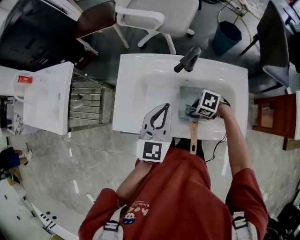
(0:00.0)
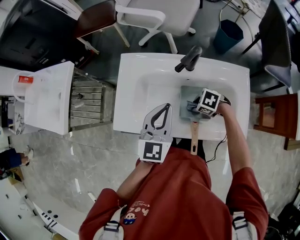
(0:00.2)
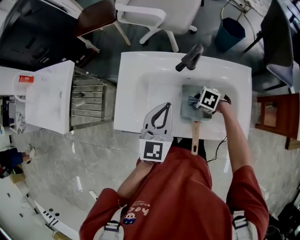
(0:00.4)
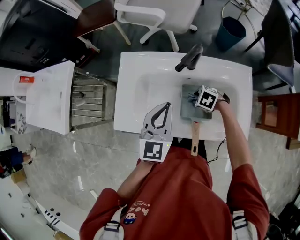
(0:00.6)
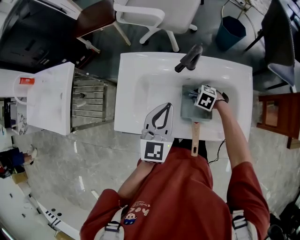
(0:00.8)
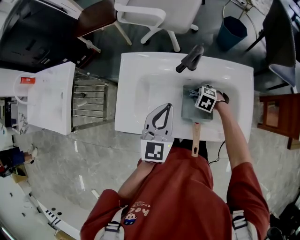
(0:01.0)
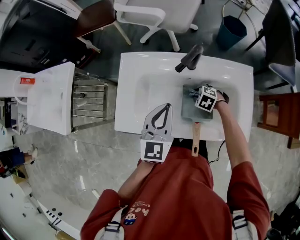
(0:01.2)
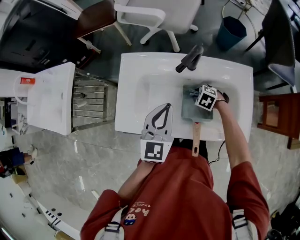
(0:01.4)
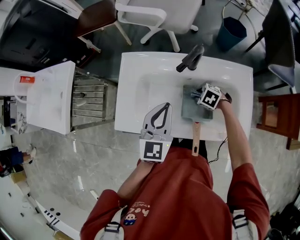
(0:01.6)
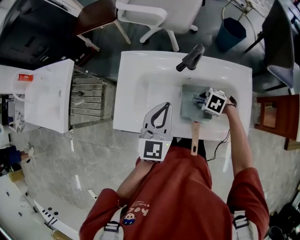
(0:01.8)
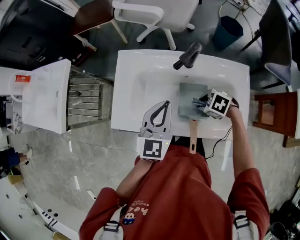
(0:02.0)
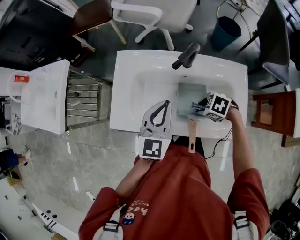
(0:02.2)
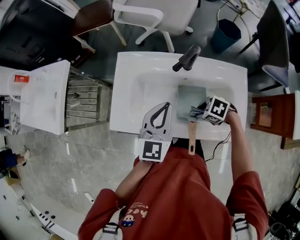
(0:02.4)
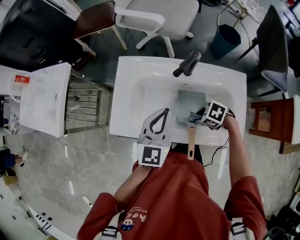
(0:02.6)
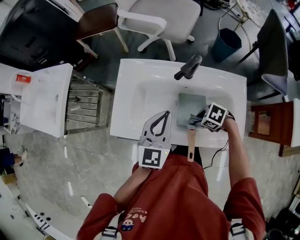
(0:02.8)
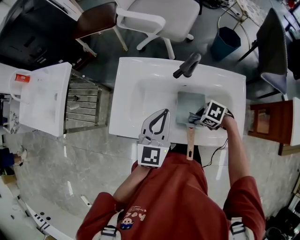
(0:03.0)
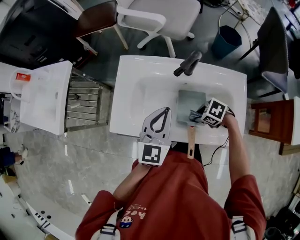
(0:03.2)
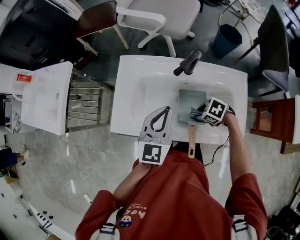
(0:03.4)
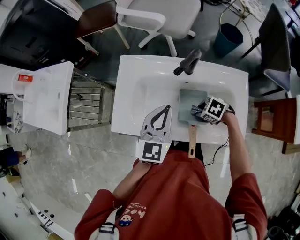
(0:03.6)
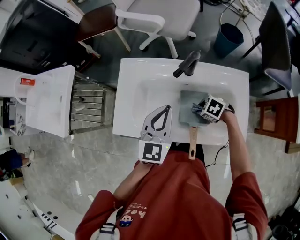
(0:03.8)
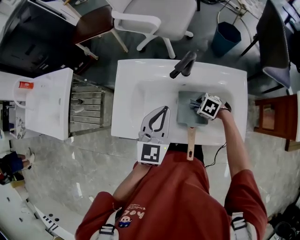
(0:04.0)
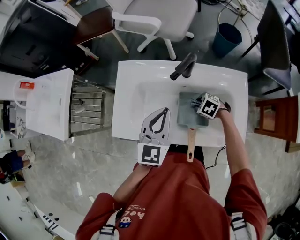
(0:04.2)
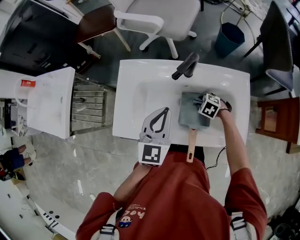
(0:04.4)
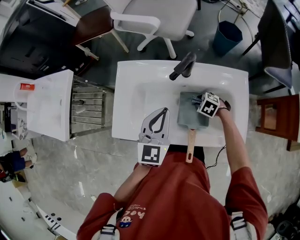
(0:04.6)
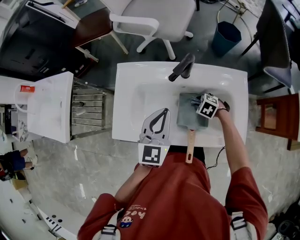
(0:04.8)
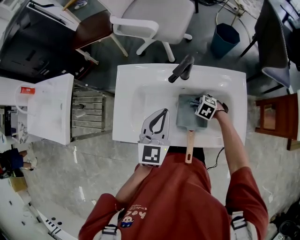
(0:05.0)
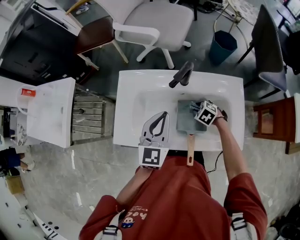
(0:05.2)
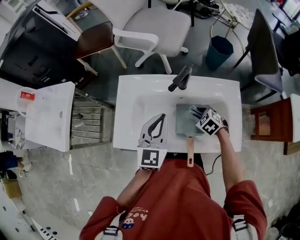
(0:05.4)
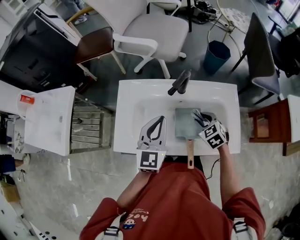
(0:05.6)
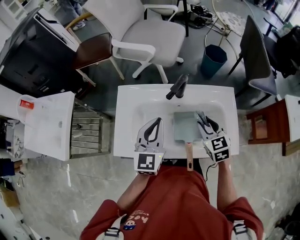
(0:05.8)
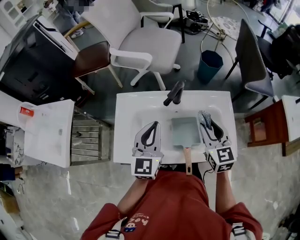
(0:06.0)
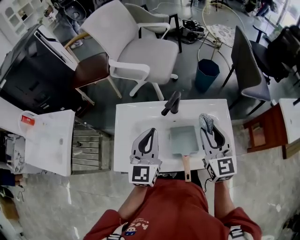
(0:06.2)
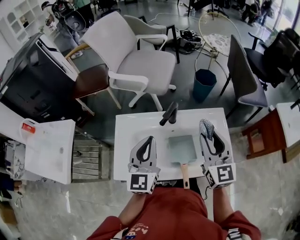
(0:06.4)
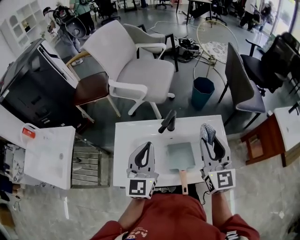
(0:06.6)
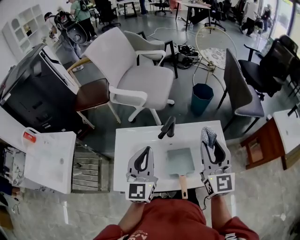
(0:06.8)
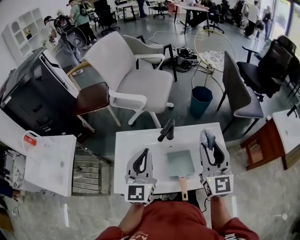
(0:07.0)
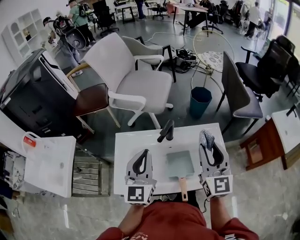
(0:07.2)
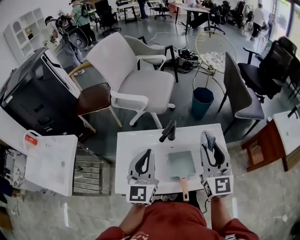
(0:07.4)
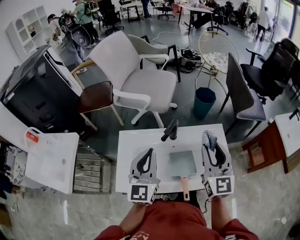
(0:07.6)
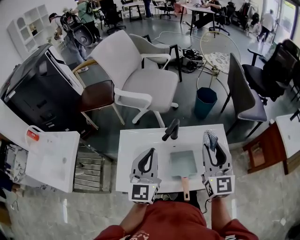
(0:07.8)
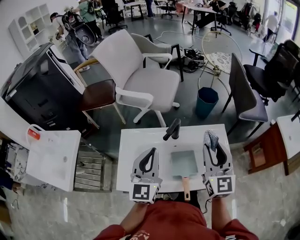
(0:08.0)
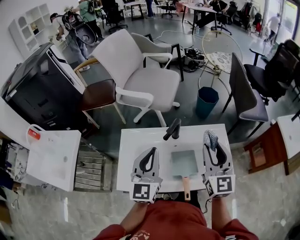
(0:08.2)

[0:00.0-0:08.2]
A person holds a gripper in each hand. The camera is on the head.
0:00.0 to 0:01.6: The right gripper changes place by roughly 10 cm.
0:01.6 to 0:03.2: The right gripper changes place by roughly 10 cm.
0:03.2 to 0:05.0: The right gripper changes place by about 10 cm, and changes its angle by about 20 degrees.
0:05.0 to 0:06.6: The right gripper heads upward, covering about 40 cm, and tilts its fingers roughly 70 degrees upward. Meanwhile the left gripper travels upward by approximately 15 cm.
0:06.6 to 0:08.2: The grippers move only a little.

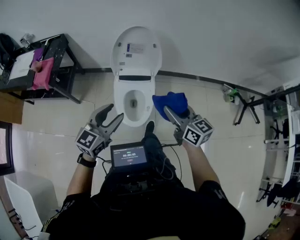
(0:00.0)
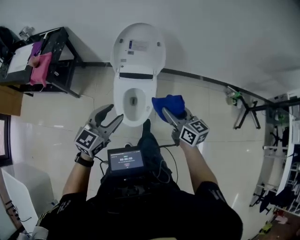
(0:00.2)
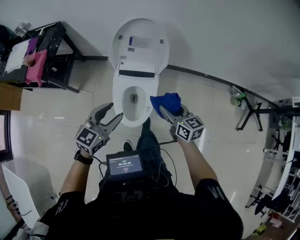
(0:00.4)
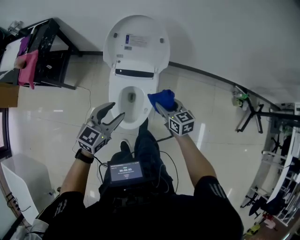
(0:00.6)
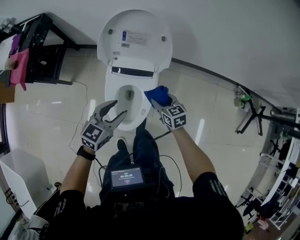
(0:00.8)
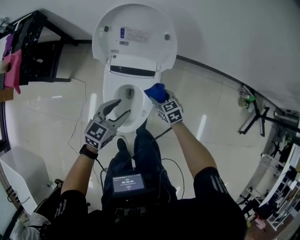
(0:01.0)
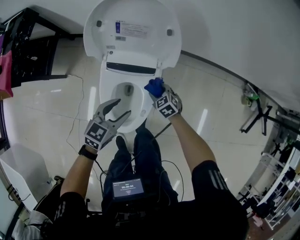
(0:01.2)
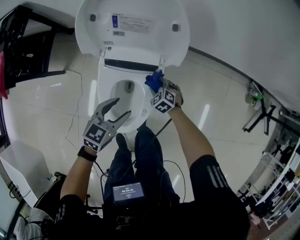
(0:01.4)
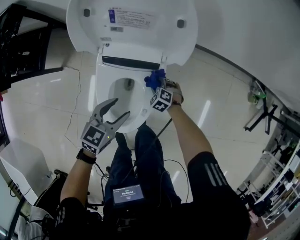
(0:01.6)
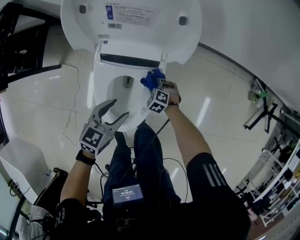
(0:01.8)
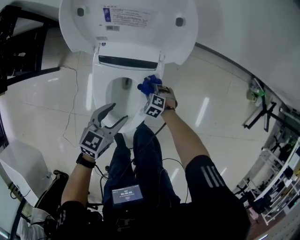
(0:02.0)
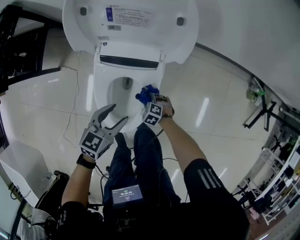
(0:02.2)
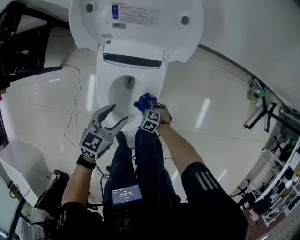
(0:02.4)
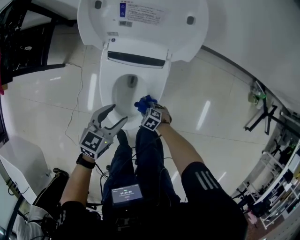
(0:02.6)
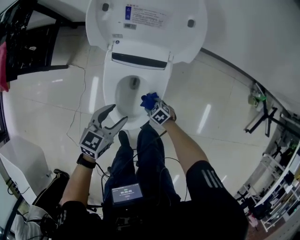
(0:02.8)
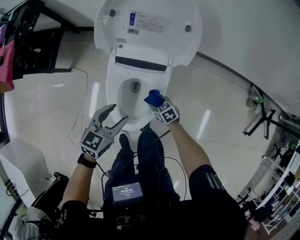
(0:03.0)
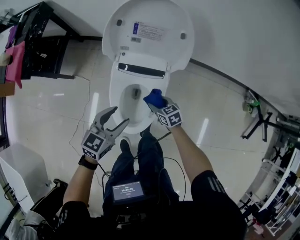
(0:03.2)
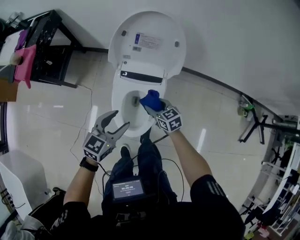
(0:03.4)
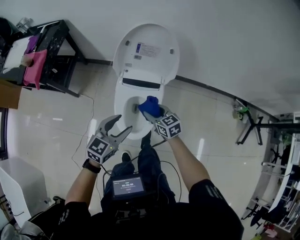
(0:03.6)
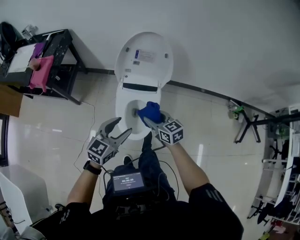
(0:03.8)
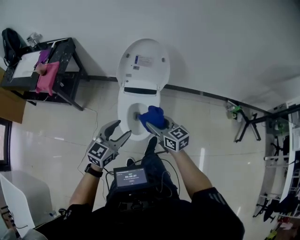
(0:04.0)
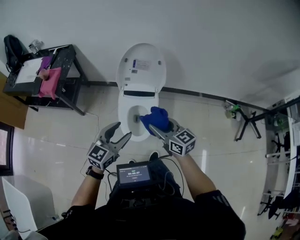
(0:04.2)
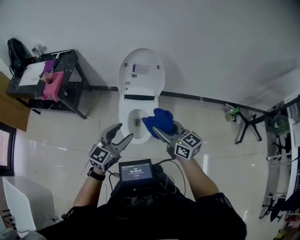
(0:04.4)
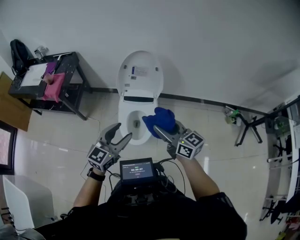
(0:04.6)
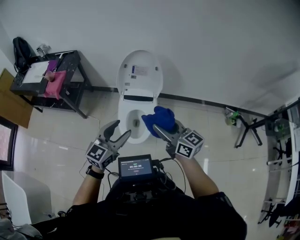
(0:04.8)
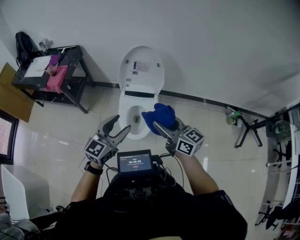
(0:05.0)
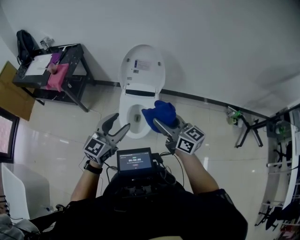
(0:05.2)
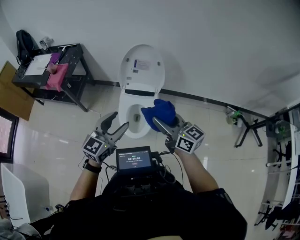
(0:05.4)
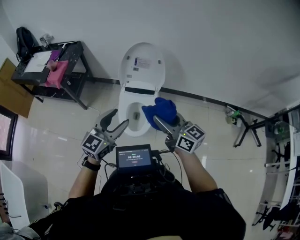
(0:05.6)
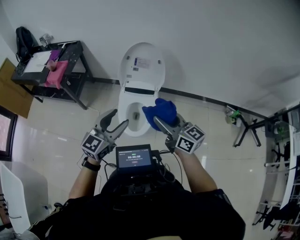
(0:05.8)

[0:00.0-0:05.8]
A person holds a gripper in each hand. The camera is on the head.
0:00.0 to 0:01.4: The grippers both shift downward and forward by some 60 cm. The left gripper swivels roughly 30 degrees. The right gripper points its fingers some 50 degrees further downward.
0:01.4 to 0:02.8: The right gripper moves about 20 cm, and changes its angle by approximately 30 degrees; the left gripper shifts by approximately 5 cm.
0:02.8 to 0:04.4: The right gripper heads upward, covering about 70 cm, and tilts its fingers about 50 degrees upward. The left gripper is displaced upward by roughly 35 cm, and rotates approximately 30 degrees.
0:04.4 to 0:05.8: The right gripper changes place by some 5 cm. Meanwhile the left gripper is displaced upward by some 5 cm.

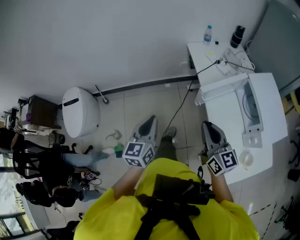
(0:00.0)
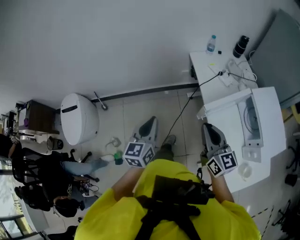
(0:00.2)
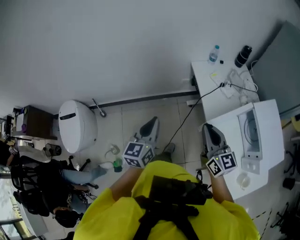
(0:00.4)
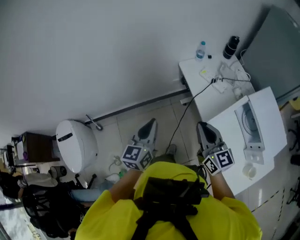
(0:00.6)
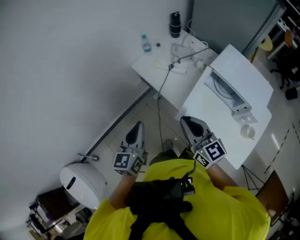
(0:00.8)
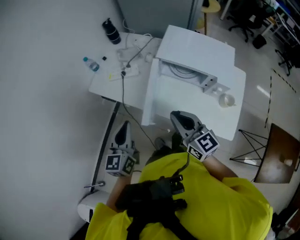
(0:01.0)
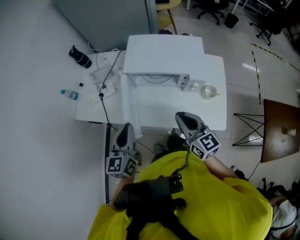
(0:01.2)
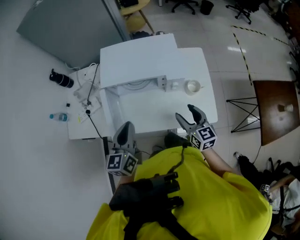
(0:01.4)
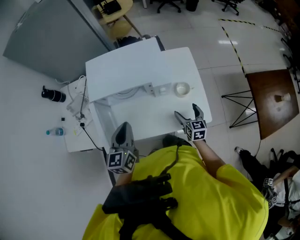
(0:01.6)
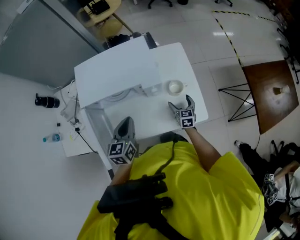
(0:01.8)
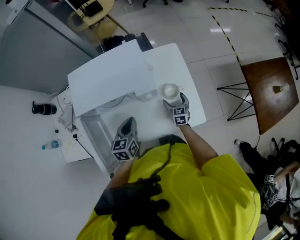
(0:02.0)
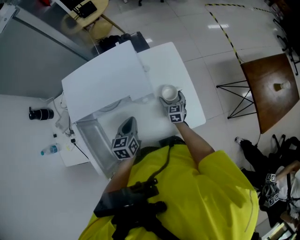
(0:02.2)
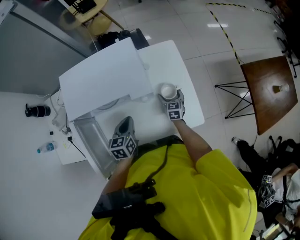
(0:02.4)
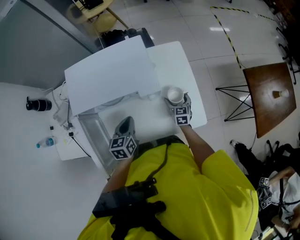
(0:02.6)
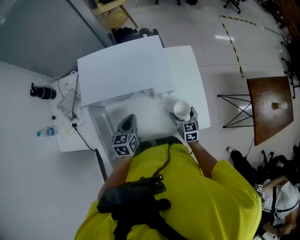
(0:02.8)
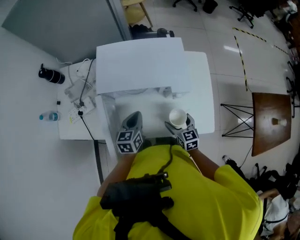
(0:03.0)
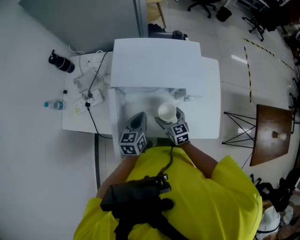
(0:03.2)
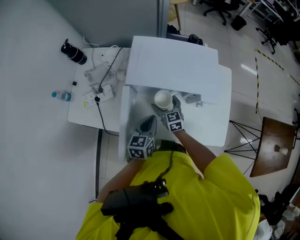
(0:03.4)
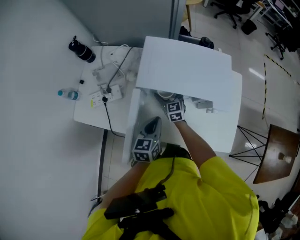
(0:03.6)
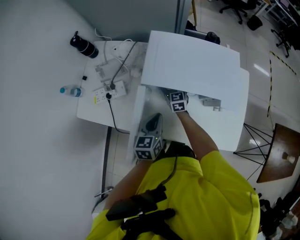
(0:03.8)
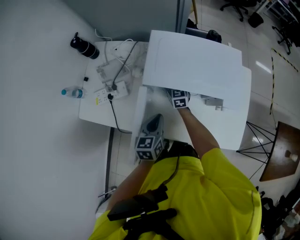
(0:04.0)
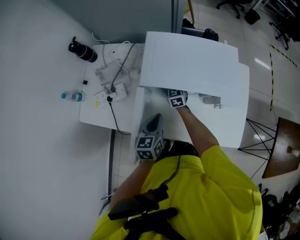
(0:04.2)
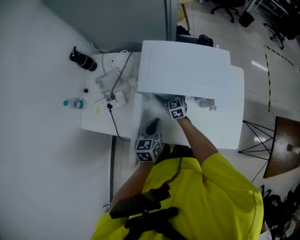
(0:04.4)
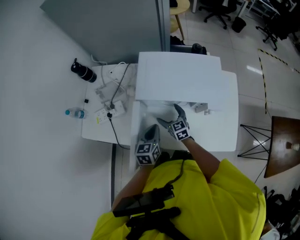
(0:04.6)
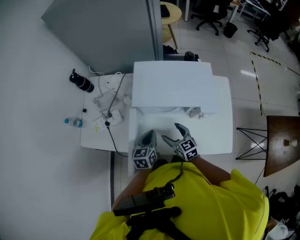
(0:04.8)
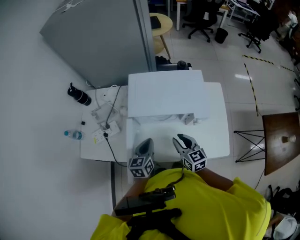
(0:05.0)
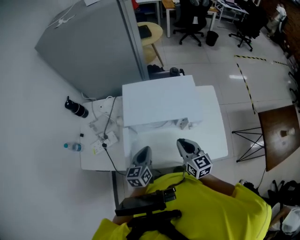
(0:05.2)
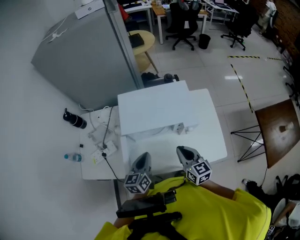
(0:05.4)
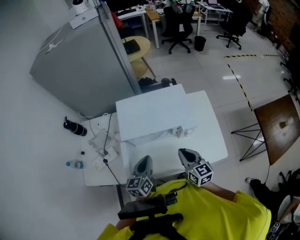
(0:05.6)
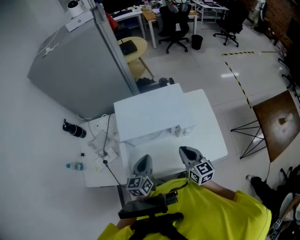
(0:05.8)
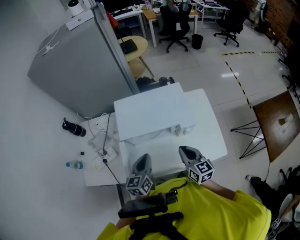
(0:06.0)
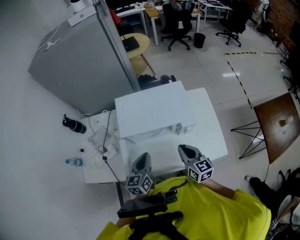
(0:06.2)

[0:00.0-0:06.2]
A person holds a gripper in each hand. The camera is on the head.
0:00.0 to 0:01.6: The left gripper changes place by roughly 40 cm, and rotates some 80 degrees. The right gripper moves about 40 cm, rotates roughly 100 degrees, and opens its fingers.
0:01.6 to 0:03.2: The right gripper heads to the left, covering roughly 25 cm, and changes its angle by some 30 degrees. The left gripper is displaced downward, to the left and forward by some 15 cm.
0:03.2 to 0:04.6: The right gripper travels to the left and forward by roughly 15 cm. The left gripper travels to the left by some 5 cm.
0:04.6 to 0:06.2: The right gripper travels upward, to the right and backward by approximately 30 cm, turns by roughly 30 degrees, and closes up. The left gripper heads upward, covering roughly 10 cm.

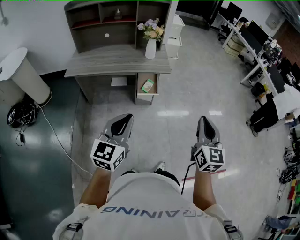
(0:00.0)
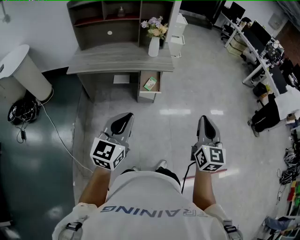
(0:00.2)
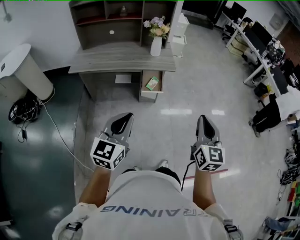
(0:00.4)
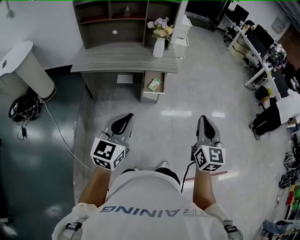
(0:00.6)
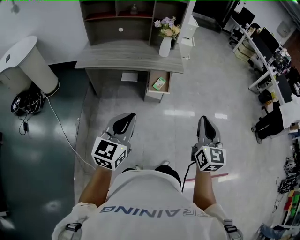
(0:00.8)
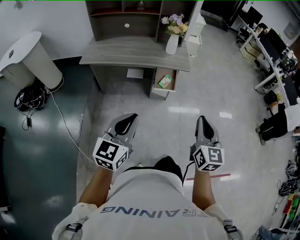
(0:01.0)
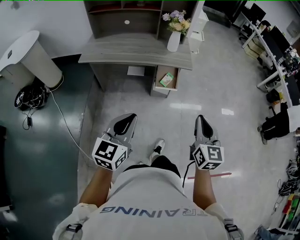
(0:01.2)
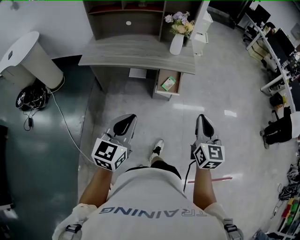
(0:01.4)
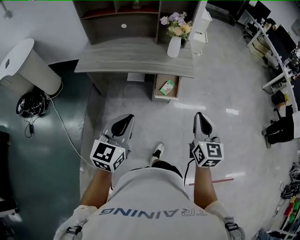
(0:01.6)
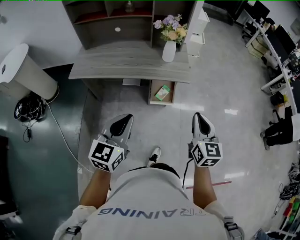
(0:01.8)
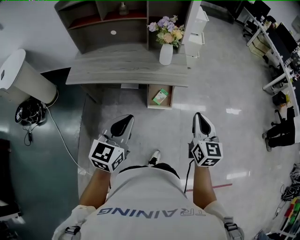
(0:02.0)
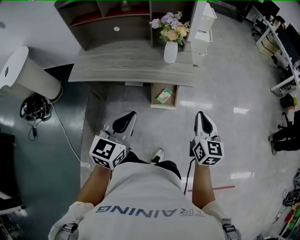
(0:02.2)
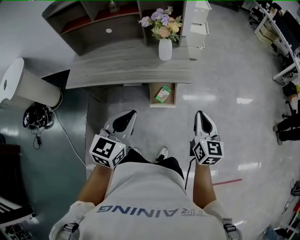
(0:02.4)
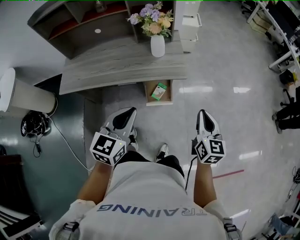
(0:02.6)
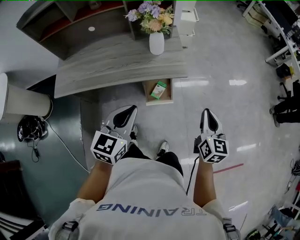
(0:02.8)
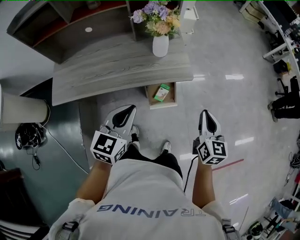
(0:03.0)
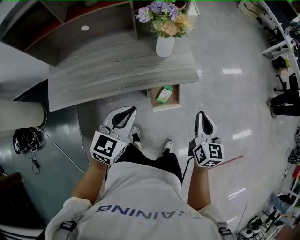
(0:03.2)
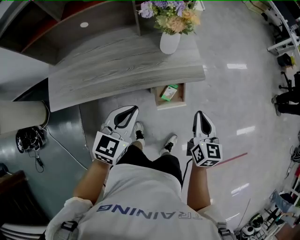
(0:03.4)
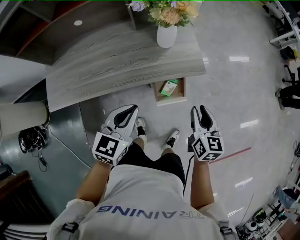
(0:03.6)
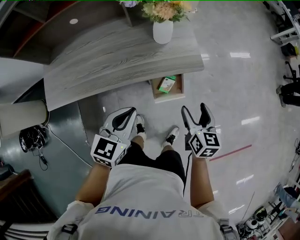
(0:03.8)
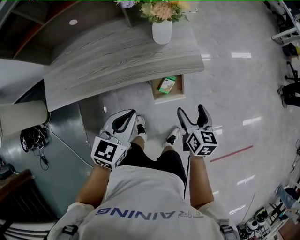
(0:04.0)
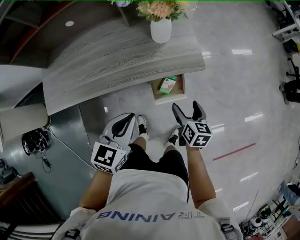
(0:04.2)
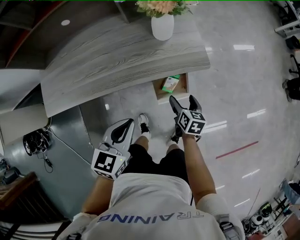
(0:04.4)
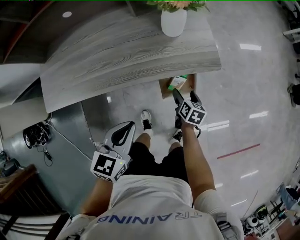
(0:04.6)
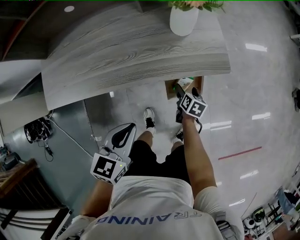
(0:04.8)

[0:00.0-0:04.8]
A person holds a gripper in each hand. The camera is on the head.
0:00.0 to 0:01.6: The left gripper shifts some 15 cm forward and to the left, while the right gripper moves forward, to the left and downward, approximately 20 cm.
0:01.6 to 0:03.2: The right gripper shifts roughly 25 cm forward and downward, and turns by some 20 degrees. Meanwhile the left gripper is displaced forward by approximately 30 cm, and rotates approximately 20 degrees.
0:03.2 to 0:04.8: The right gripper goes some 40 cm downward, angles its fingers downward, by about 30 degrees, and opens its fingers; the left gripper is displaced downward by some 15 cm.
